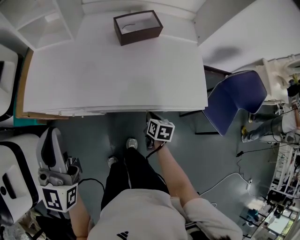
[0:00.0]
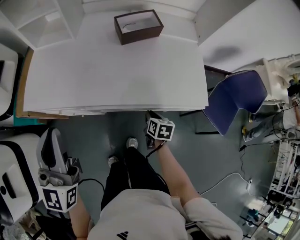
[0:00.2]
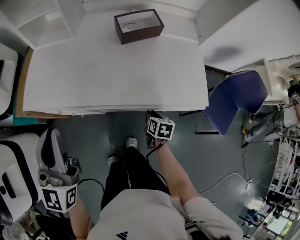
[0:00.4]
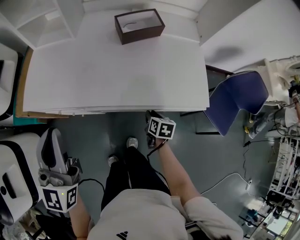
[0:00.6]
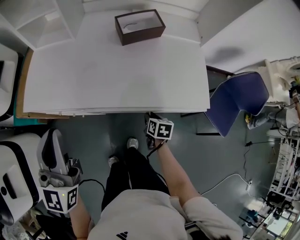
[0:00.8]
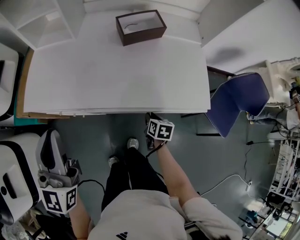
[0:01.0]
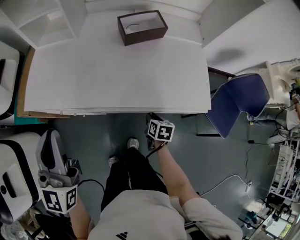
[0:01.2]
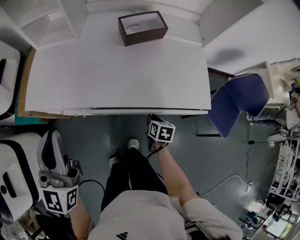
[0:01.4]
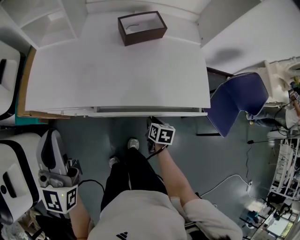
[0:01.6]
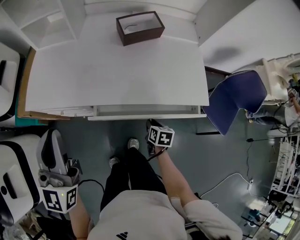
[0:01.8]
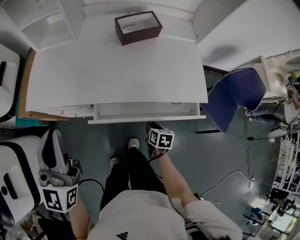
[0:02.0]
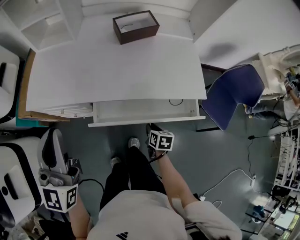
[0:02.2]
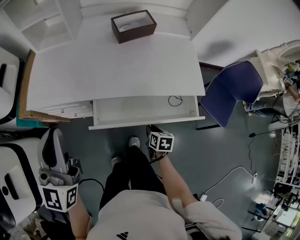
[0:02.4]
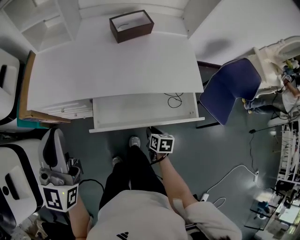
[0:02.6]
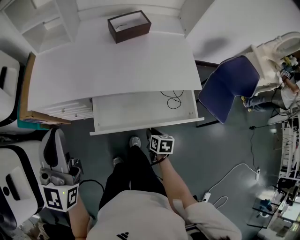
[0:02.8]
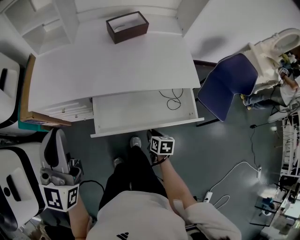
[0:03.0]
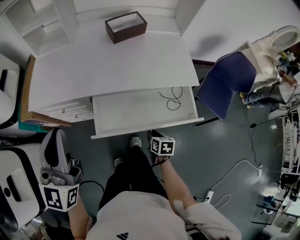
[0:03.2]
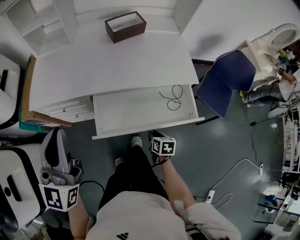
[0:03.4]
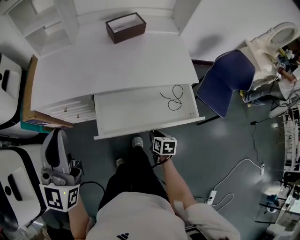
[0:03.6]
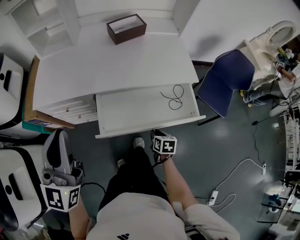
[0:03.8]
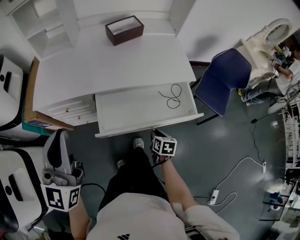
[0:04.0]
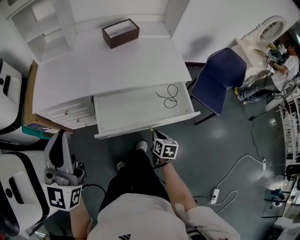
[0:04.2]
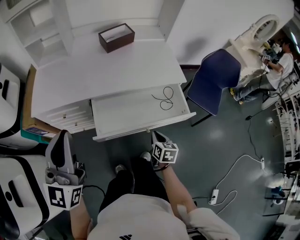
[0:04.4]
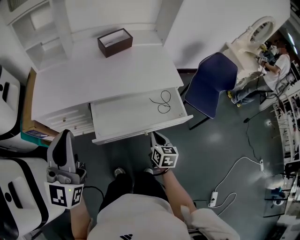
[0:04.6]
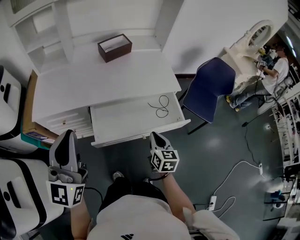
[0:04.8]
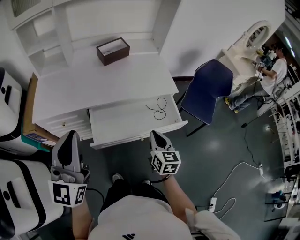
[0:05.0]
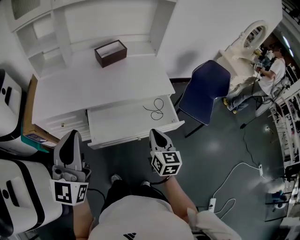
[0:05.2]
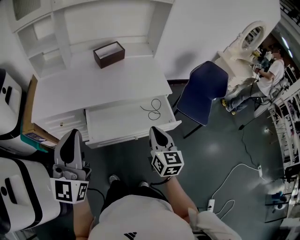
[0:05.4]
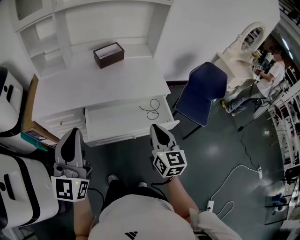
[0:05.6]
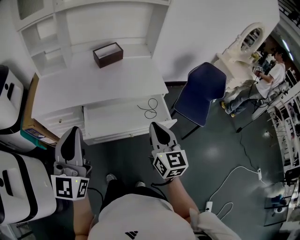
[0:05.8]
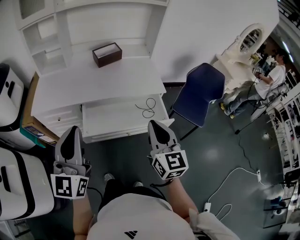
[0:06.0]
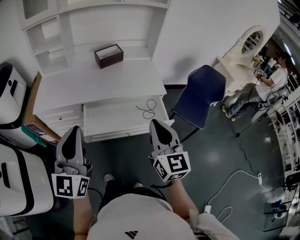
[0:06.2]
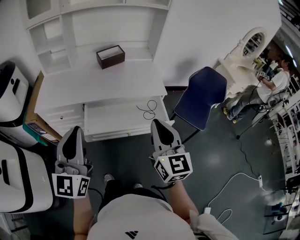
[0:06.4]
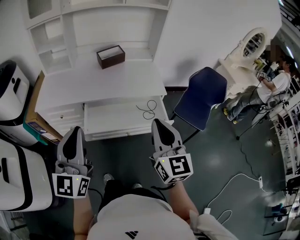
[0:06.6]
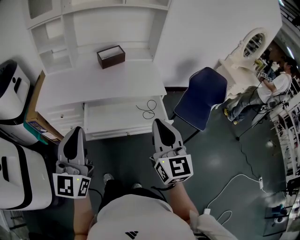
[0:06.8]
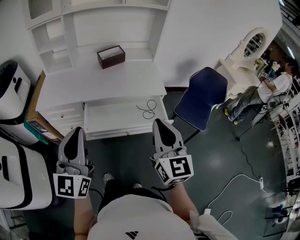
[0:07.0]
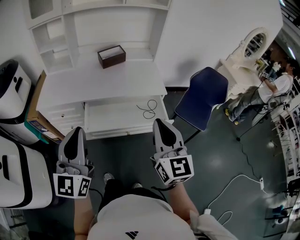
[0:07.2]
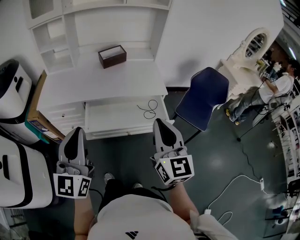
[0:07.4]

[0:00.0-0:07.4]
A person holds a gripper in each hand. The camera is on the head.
0.0 to 1.4 s: There are only small adjustments of the grippers.
1.4 to 3.0 s: The left gripper travels backward by some 10 cm; the right gripper heads backward, covering about 15 cm.
3.0 to 4.4 s: The right gripper is displaced upward and backward by roughly 10 cm. Meanwhile the left gripper shifts some 5 cm backward.
4.4 to 6.0 s: The right gripper travels upward by approximately 30 cm, and tips its fingers upward by approximately 40 degrees. The left gripper goes roughly 10 cm to the right and backward.
6.0 to 7.4 s: The right gripper goes roughly 5 cm upward.

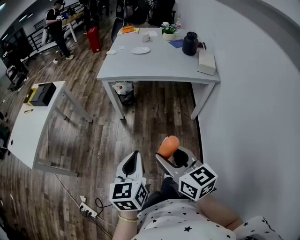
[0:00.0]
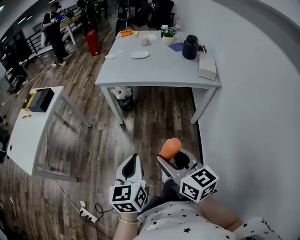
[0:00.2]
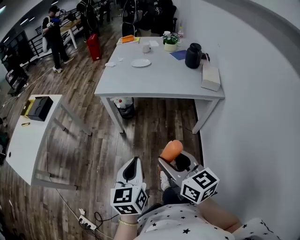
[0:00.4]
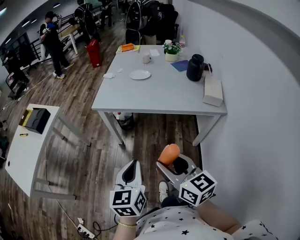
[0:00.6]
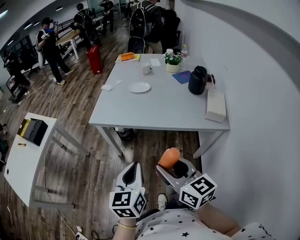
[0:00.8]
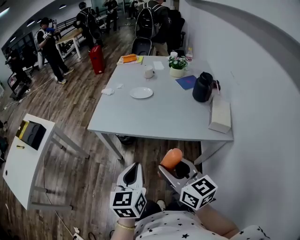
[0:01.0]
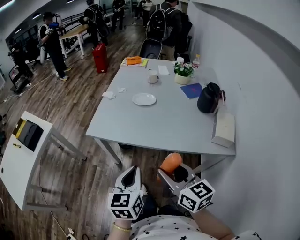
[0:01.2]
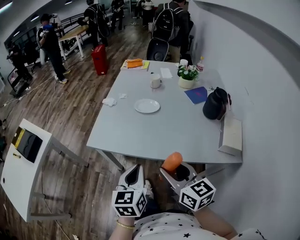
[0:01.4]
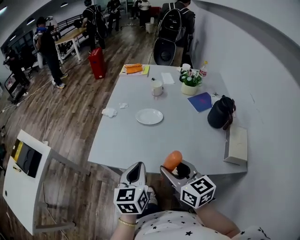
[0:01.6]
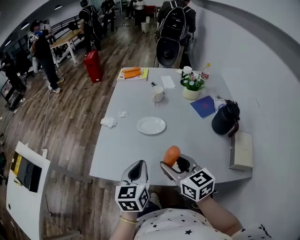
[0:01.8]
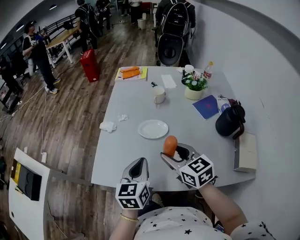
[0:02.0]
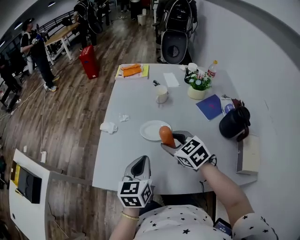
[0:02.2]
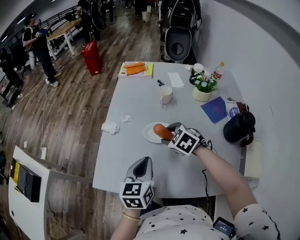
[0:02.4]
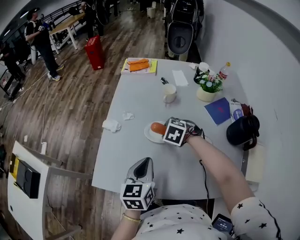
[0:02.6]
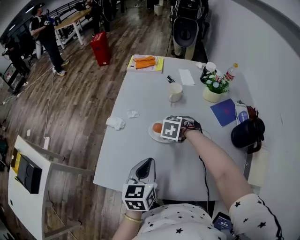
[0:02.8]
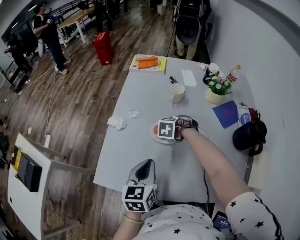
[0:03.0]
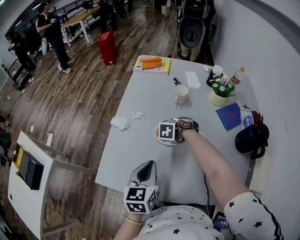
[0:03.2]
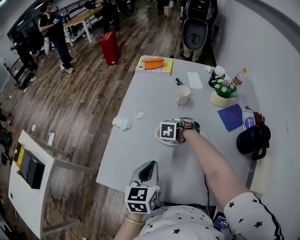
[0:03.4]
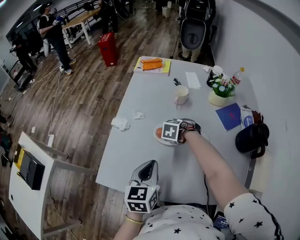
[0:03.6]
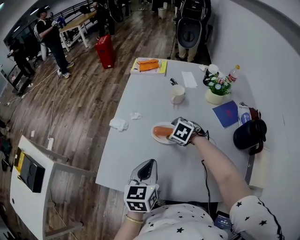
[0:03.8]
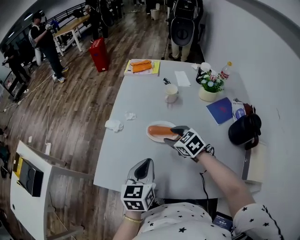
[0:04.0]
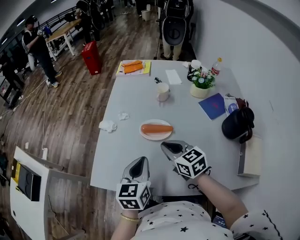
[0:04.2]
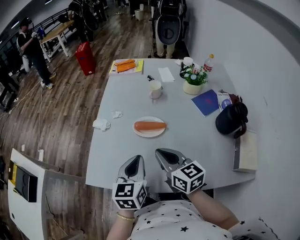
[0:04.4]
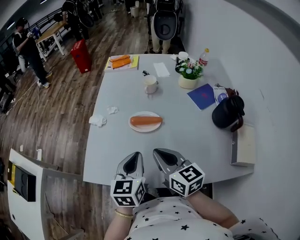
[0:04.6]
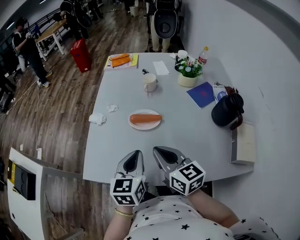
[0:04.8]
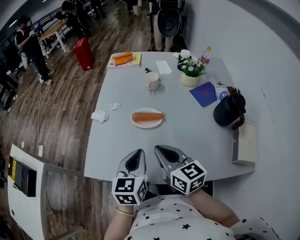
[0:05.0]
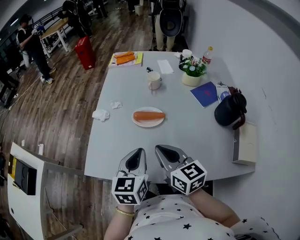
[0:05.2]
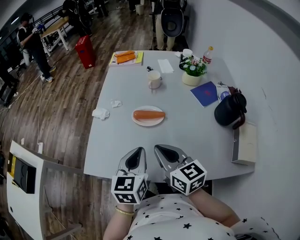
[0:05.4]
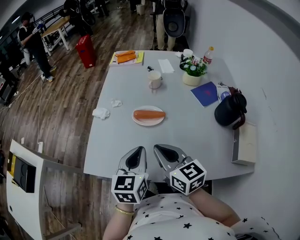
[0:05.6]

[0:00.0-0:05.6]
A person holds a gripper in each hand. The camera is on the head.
0.0 to 1.4 s: Both grippers are carried forward, about 50 cm.
1.4 to 2.8 s: The left gripper ends up approximately 30 cm from where it was. Meanwhile the right gripper ends up approximately 50 cm from where it was, and tilts its fingers some 70 degrees downward.
2.8 to 4.2 s: The right gripper ends up roughly 15 cm from where it was, tilts its fingers about 50 degrees upward, and closes.
4.2 to 5.6 s: The right gripper heads backward and upward, covering approximately 10 cm.

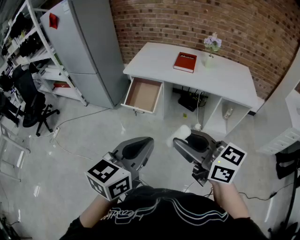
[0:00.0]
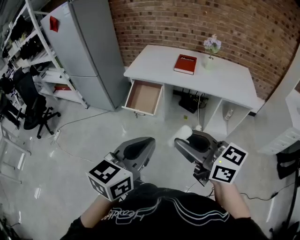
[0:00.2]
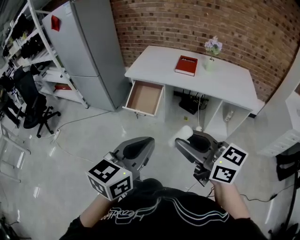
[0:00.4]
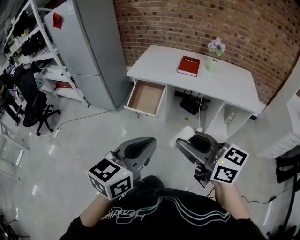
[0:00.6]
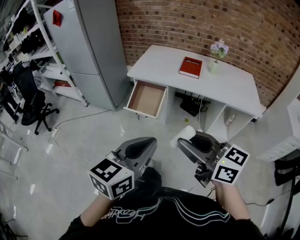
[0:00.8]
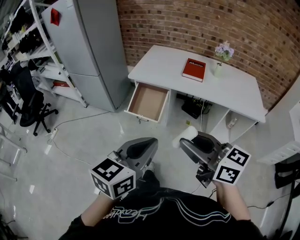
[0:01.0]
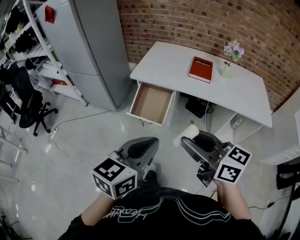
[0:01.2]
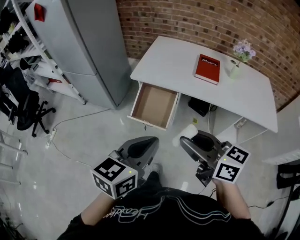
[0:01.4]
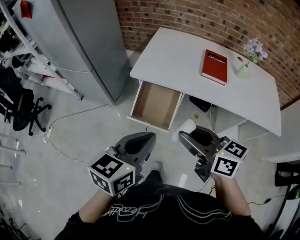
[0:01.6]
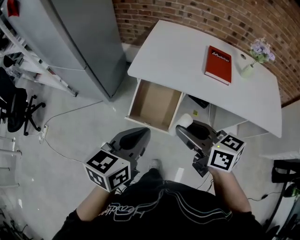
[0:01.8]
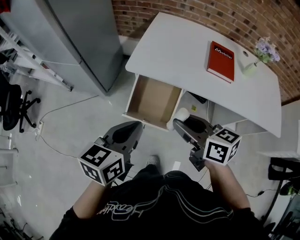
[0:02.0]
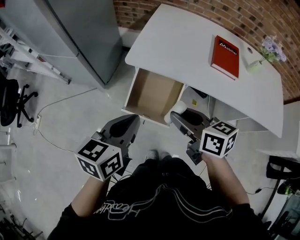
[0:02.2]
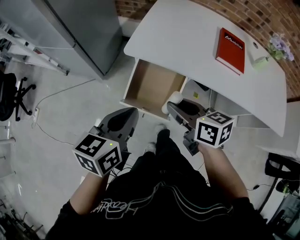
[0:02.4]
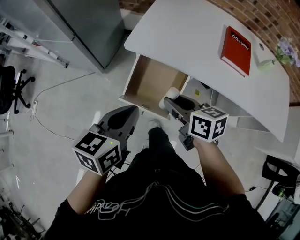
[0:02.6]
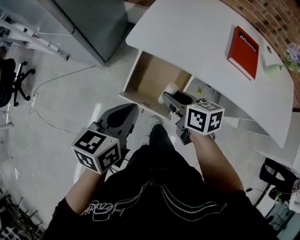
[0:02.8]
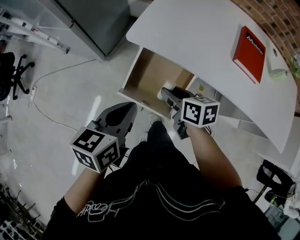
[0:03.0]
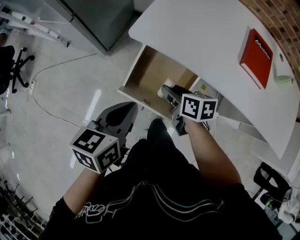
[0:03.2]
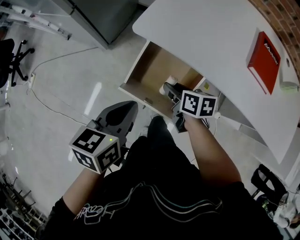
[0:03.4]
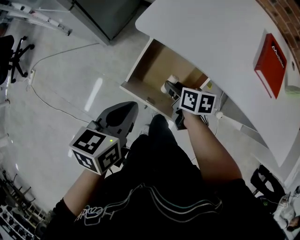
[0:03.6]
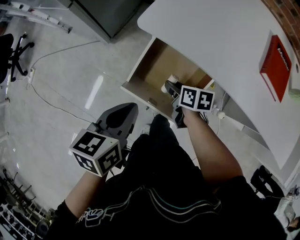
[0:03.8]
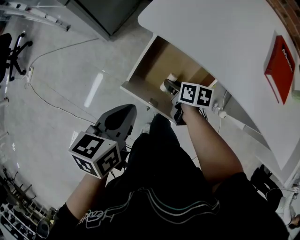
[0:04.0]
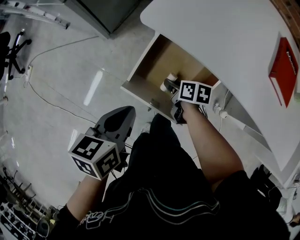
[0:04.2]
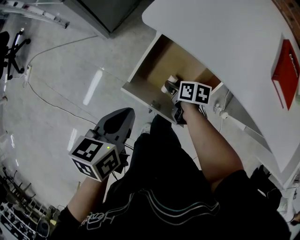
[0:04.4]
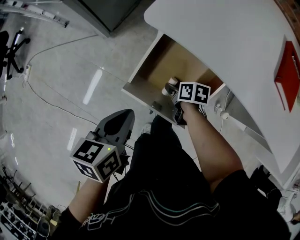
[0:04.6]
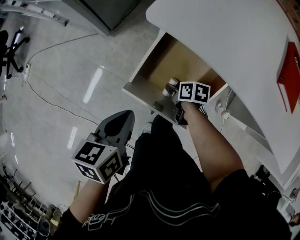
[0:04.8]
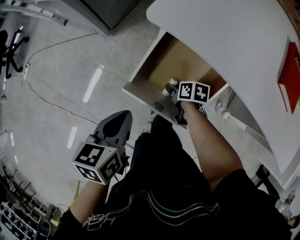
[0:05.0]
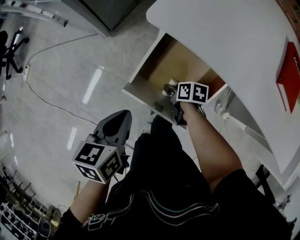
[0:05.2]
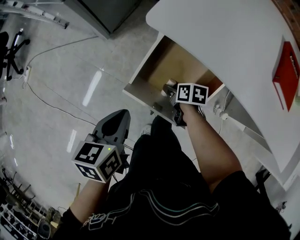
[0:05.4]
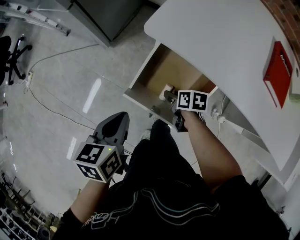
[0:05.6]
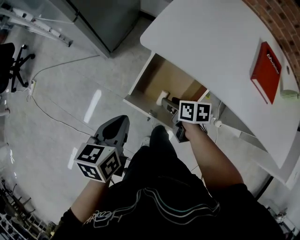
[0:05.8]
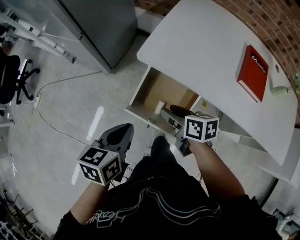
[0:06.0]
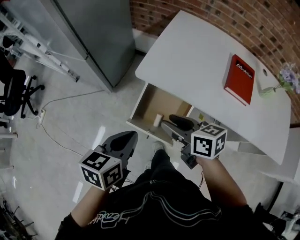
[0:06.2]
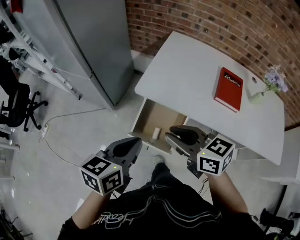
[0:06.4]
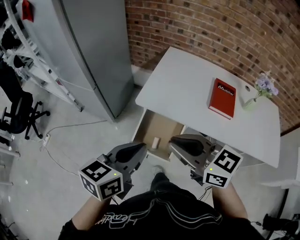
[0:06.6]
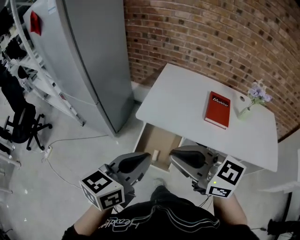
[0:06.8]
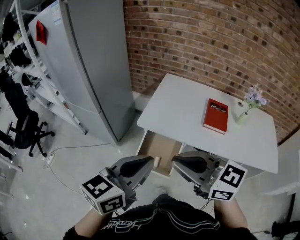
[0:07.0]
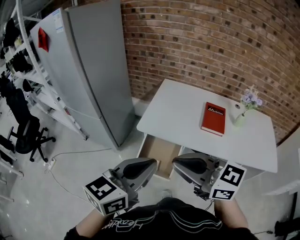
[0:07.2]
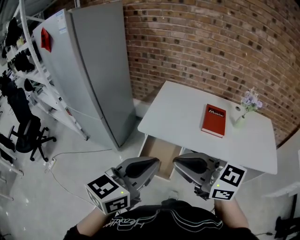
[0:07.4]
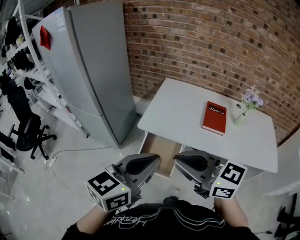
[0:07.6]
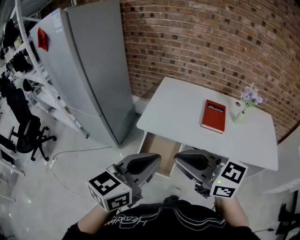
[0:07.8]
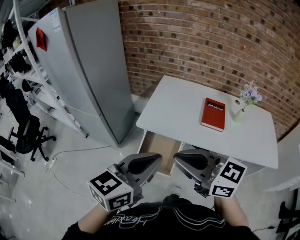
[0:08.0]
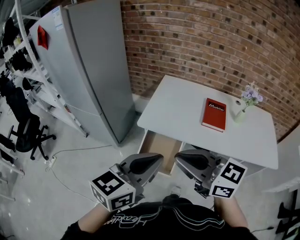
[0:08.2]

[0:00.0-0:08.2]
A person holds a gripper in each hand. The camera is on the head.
0.0 to 1.6 s: Both grippers are carried forward, approximately 40 cm.
1.6 to 3.2 s: The right gripper is displaced downward and forward by approximately 50 cm, and swivels roughly 30 degrees. The left gripper travels forward and downward by some 35 cm, and swivels some 20 degrees.
3.2 to 5.0 s: The left gripper shifts roughly 15 cm downward and to the left, while the right gripper is displaced downward by approximately 25 cm, and rotates about 30 degrees.
5.0 to 6.6 s: The left gripper heads upward, covering roughly 40 cm, and turns by roughly 40 degrees; the right gripper shifts roughly 60 cm upward, and points its fingers approximately 40 degrees further upward.
6.6 to 8.2 s: The right gripper moves backward and upward, approximately 15 cm; the left gripper heads upward, backward and to the right, covering approximately 15 cm.

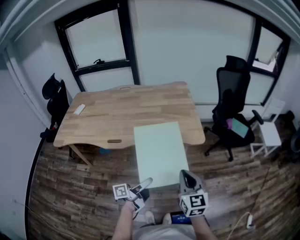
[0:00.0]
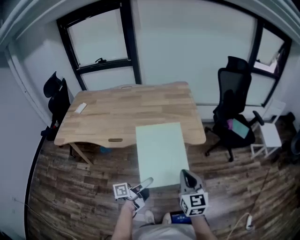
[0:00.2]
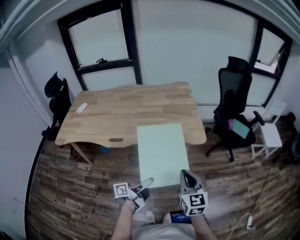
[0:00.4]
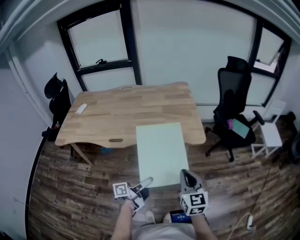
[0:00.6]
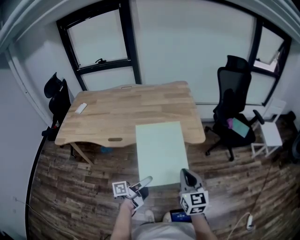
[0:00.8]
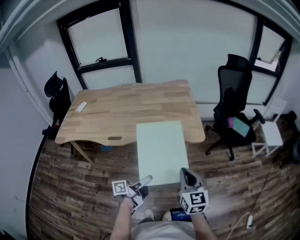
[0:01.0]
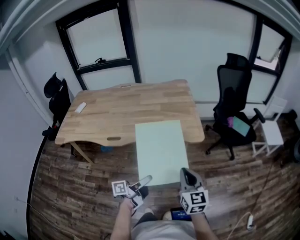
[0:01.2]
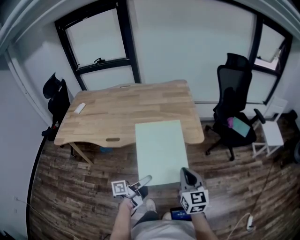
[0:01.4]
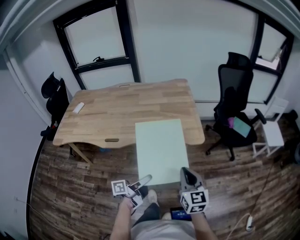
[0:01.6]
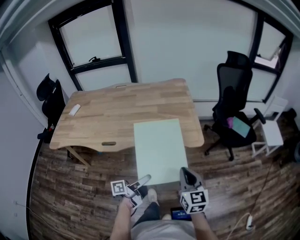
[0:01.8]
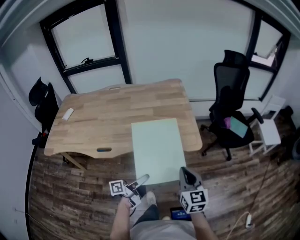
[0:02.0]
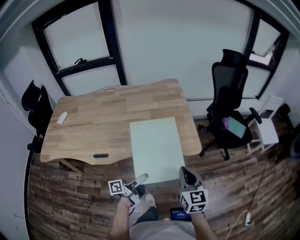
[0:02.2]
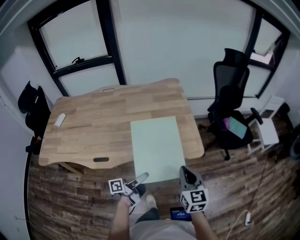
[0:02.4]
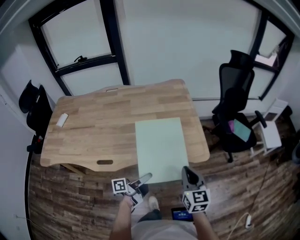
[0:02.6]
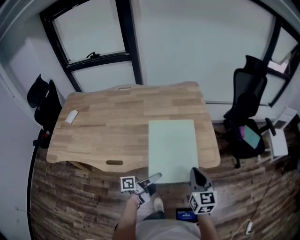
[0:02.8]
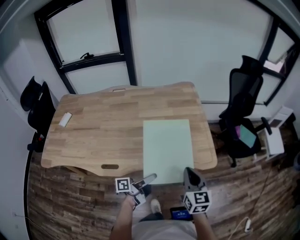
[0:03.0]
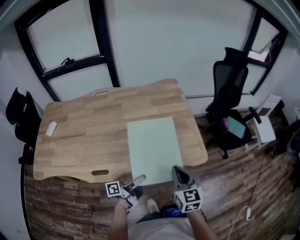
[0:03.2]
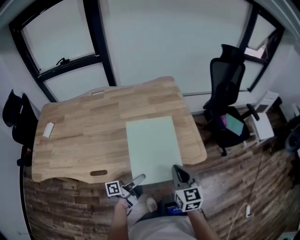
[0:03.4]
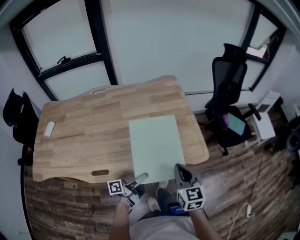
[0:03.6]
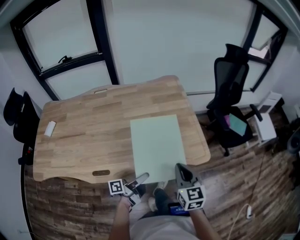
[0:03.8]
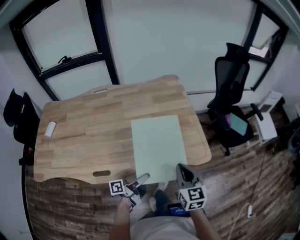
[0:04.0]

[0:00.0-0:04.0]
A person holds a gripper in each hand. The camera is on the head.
0.0 to 1.4 s: The grippers move only a little.
1.4 to 2.6 s: The grippers both shift forward and to the left by approximately 20 cm.
2.6 to 4.0 s: The right gripper heads to the left, covering some 5 cm, while the left gripper shifts by some 5 cm.
